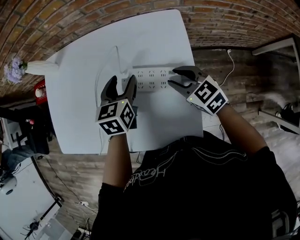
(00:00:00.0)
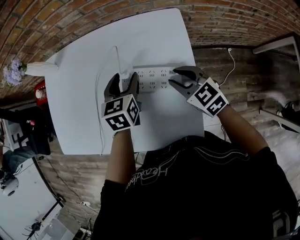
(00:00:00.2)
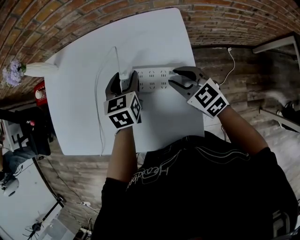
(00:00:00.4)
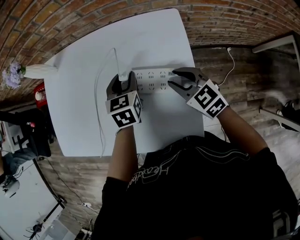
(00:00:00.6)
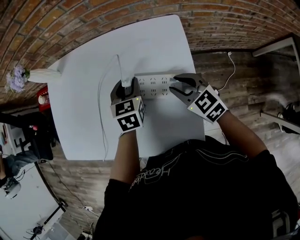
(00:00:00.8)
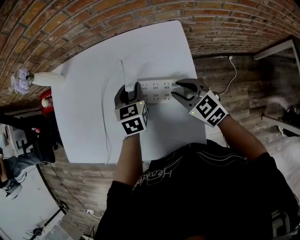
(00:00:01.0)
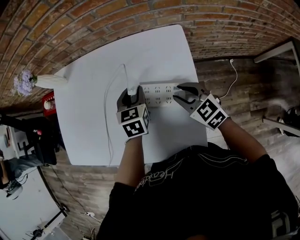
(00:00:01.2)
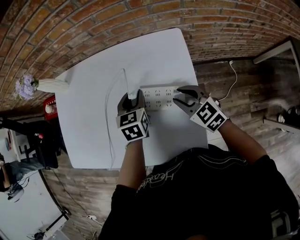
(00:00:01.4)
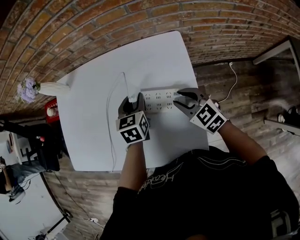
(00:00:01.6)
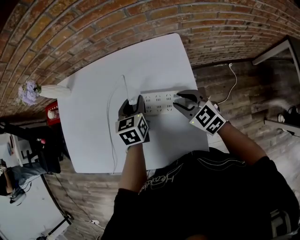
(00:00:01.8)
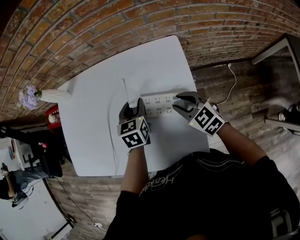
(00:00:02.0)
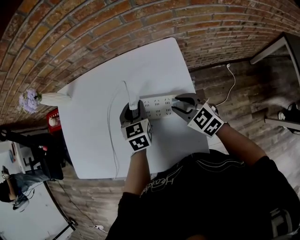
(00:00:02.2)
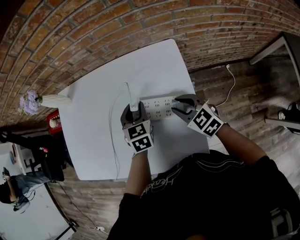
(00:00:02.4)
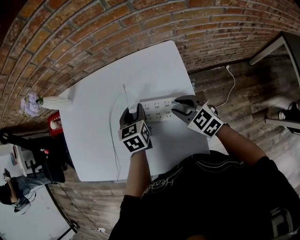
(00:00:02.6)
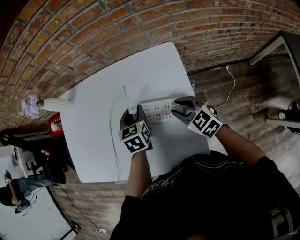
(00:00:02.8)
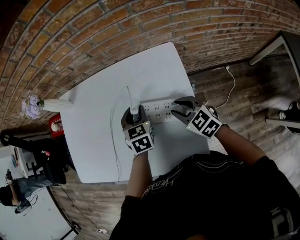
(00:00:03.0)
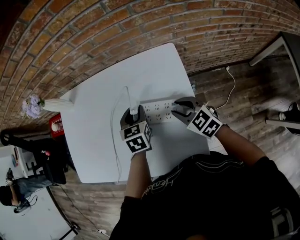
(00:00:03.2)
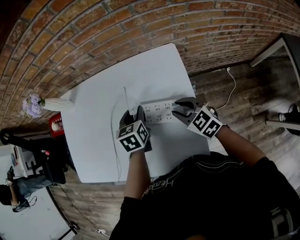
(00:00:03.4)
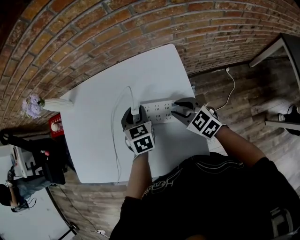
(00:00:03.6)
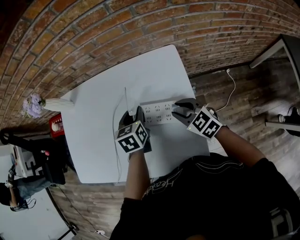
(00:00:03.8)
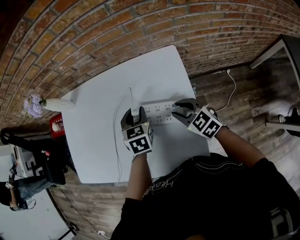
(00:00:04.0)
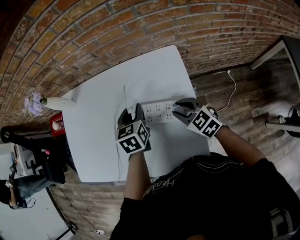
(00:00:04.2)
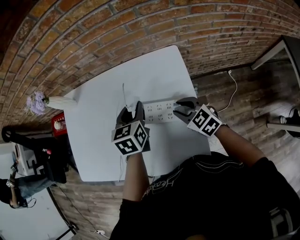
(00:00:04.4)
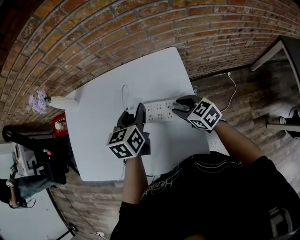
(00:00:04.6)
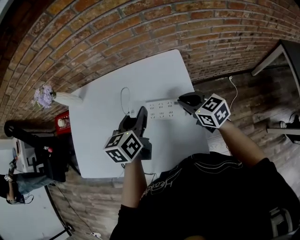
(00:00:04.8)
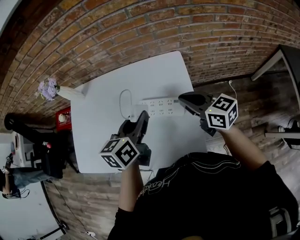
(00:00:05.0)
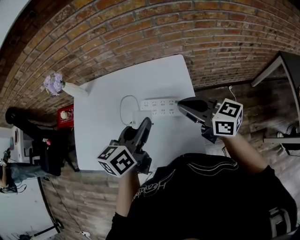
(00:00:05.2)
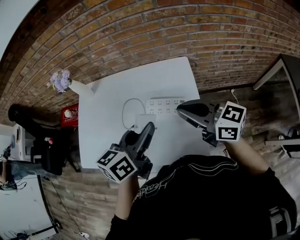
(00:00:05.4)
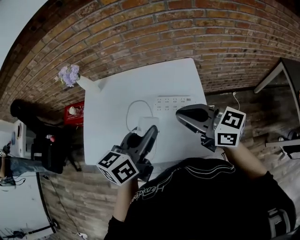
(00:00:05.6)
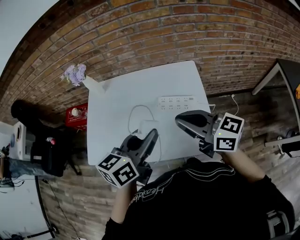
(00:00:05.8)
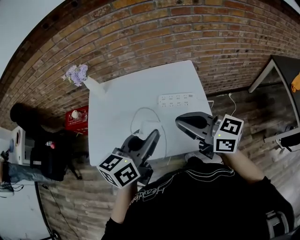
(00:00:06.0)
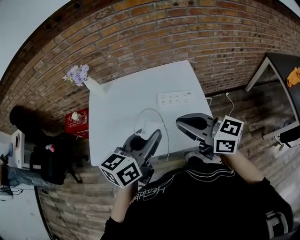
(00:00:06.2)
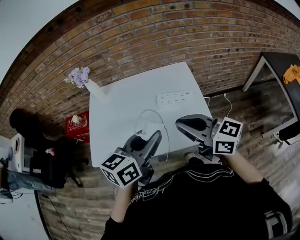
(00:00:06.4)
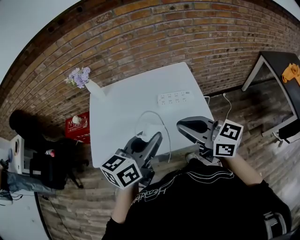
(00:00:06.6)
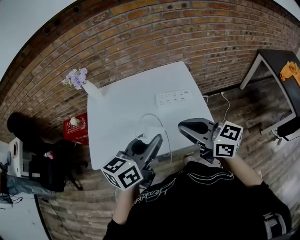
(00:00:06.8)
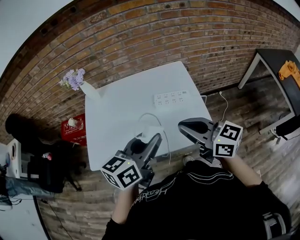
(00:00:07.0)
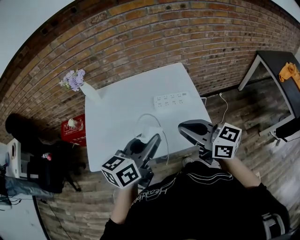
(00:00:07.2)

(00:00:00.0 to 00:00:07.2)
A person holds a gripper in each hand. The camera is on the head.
00:00:00.0 - 00:00:01.4: The left gripper closes its fingers.
00:00:01.4 - 00:00:02.8: The grippers make only small movements.
00:00:02.8 - 00:00:04.4: The left gripper moves upward, approximately 5 cm.
00:00:04.4 - 00:00:05.8: The left gripper goes some 30 cm backward, upward and to the left, and swivels approximately 30 degrees. The right gripper is displaced upward, backward and to the left by approximately 35 cm, tips its fingers upward by about 40 degrees, and closes up.
00:00:05.8 - 00:00:07.2: The two grippers go some 10 cm backward.

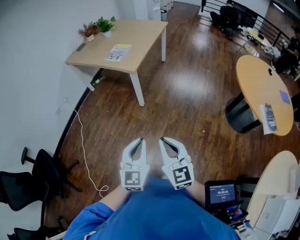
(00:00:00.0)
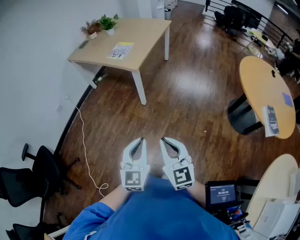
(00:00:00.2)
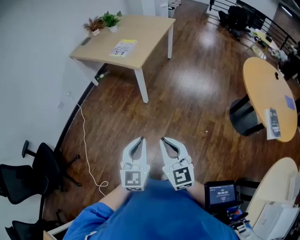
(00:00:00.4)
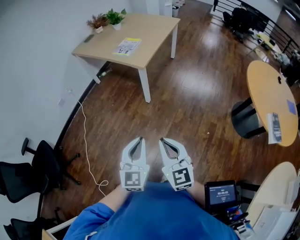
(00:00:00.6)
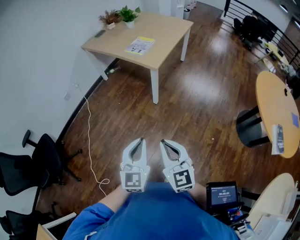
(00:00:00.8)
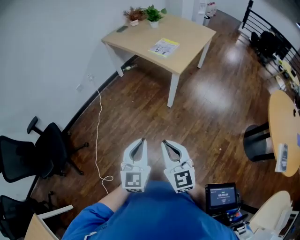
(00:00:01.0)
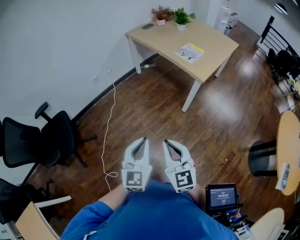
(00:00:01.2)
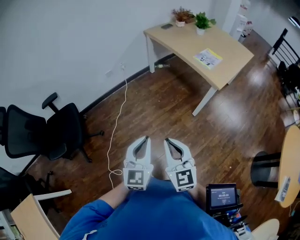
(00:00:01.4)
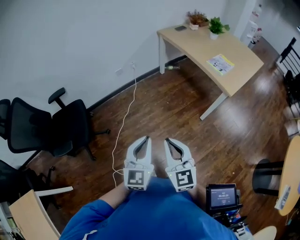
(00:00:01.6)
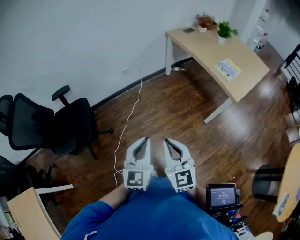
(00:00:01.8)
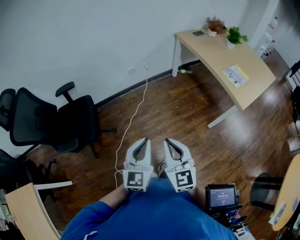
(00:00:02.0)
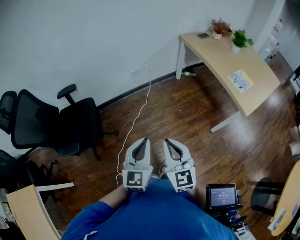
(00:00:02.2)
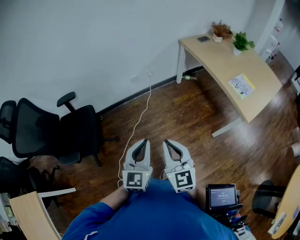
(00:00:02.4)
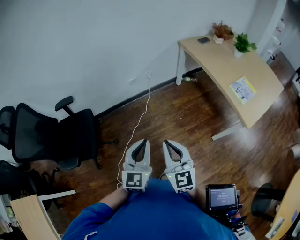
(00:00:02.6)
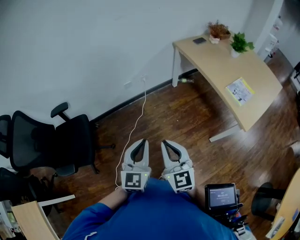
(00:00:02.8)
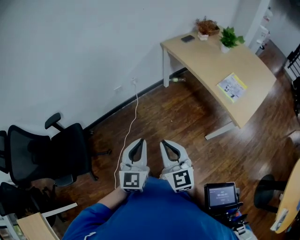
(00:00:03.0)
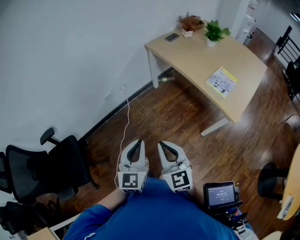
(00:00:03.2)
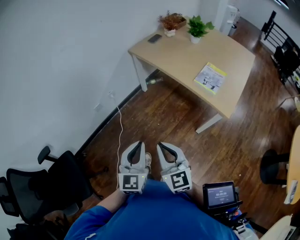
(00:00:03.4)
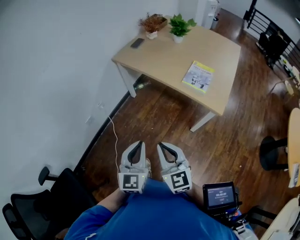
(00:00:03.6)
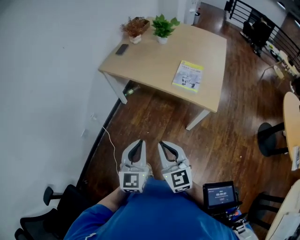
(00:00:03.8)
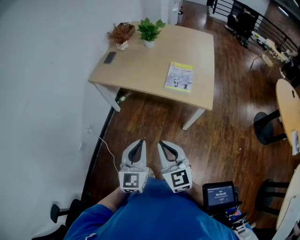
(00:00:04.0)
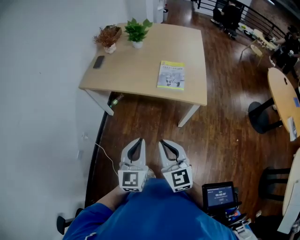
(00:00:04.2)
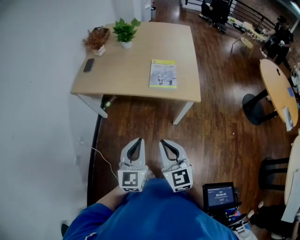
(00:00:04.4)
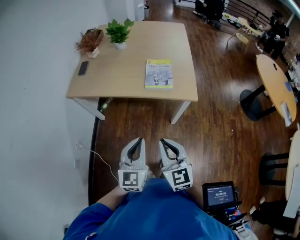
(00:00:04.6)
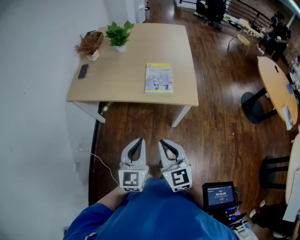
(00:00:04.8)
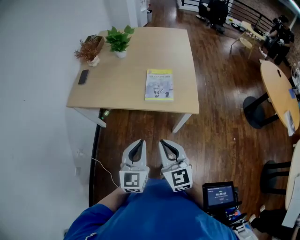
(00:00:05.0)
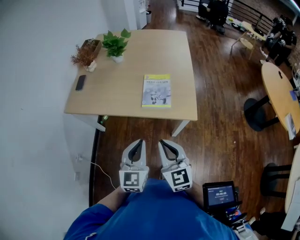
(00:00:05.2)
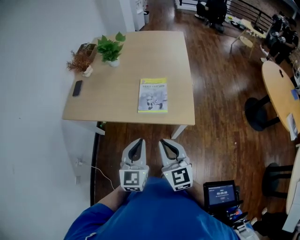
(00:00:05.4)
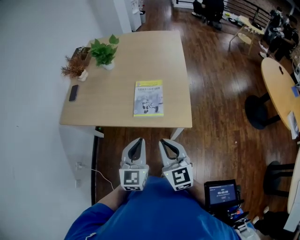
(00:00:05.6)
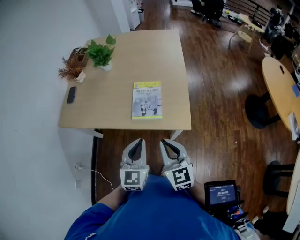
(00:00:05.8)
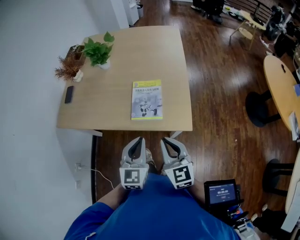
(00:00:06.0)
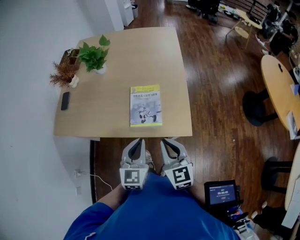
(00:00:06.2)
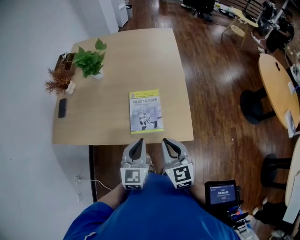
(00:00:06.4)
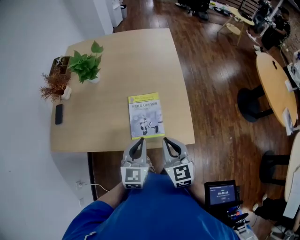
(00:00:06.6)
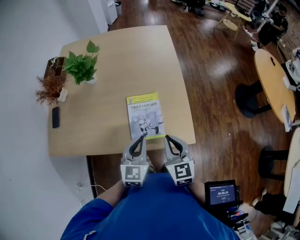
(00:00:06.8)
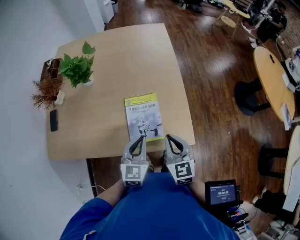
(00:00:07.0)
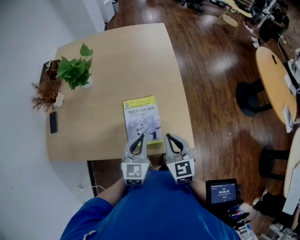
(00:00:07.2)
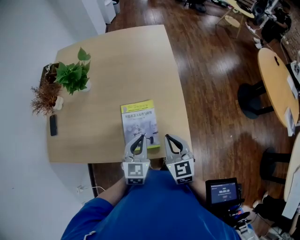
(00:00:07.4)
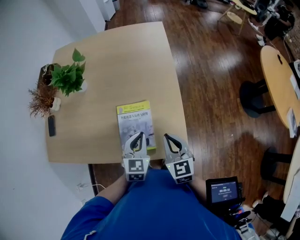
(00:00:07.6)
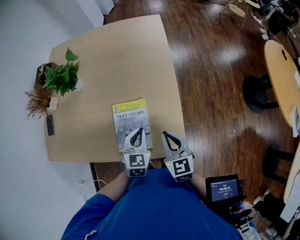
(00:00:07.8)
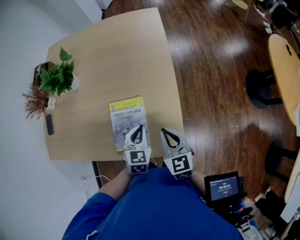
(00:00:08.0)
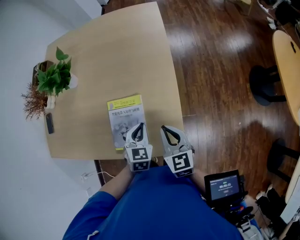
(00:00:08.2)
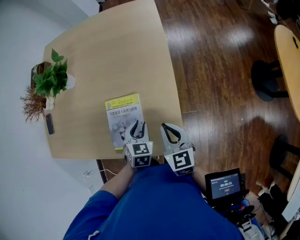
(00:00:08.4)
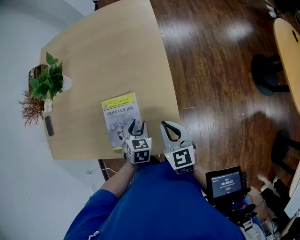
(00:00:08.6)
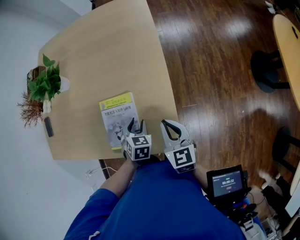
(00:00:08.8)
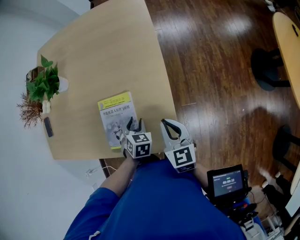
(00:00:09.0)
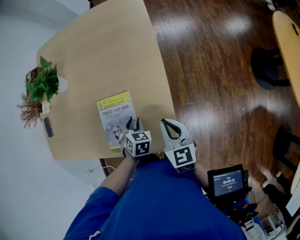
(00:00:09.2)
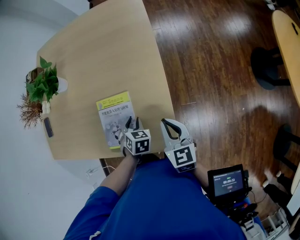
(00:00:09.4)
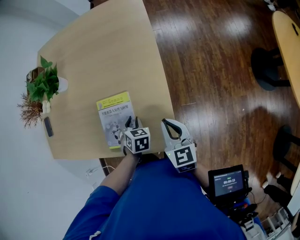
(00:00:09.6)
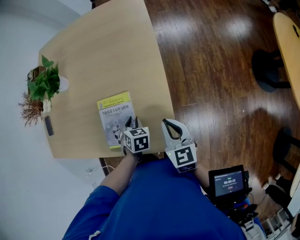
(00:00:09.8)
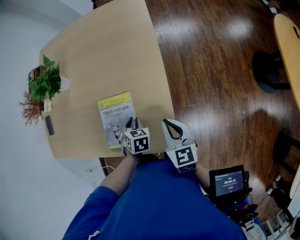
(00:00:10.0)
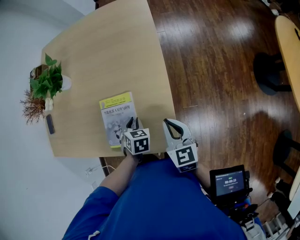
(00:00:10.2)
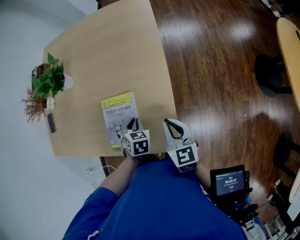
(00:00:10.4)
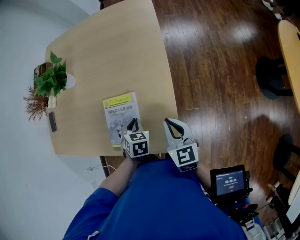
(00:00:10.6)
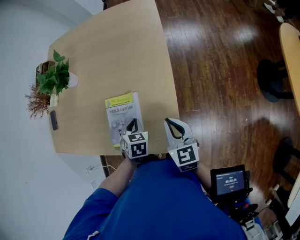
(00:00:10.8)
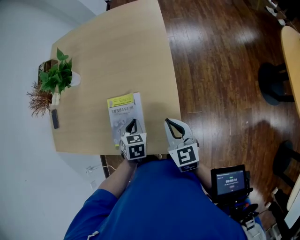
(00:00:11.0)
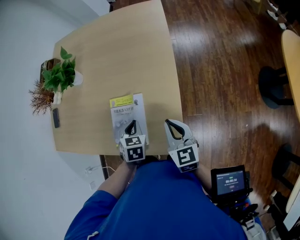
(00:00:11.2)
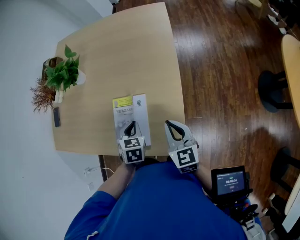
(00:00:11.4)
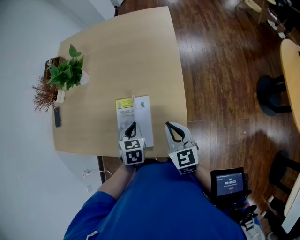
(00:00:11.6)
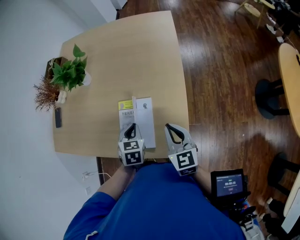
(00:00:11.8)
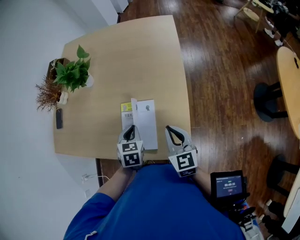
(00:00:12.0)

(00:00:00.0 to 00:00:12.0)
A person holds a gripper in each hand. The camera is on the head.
00:00:00.0 - 00:00:01.6: The two grippers travel together, roughly 50 cm. The left gripper changes its angle by some 30 degrees. The right gripper turns by about 30 degrees.
00:00:01.6 - 00:00:03.0: Both grippers move forward, about 25 cm.
00:00:03.0 - 00:00:04.4: The left gripper ends up roughly 30 cm from where it was, and turns by about 50 degrees. The right gripper ends up some 20 cm from where it was, and rotates about 50 degrees.
00:00:04.4 - 00:00:06.0: The grippers both shift forward and to the right by some 30 cm.
00:00:06.0 - 00:00:07.6: The left gripper goes roughly 25 cm forward and downward; the right gripper shifts about 20 cm forward.
00:00:07.6 - 00:00:09.0: The left gripper goes approximately 15 cm downward and to the right, changes its angle by about 30 degrees, and opens up; the right gripper shifts some 10 cm to the right and downward.
00:00:09.0 - 00:00:10.4: The left gripper closes.
00:00:10.4 - 00:00:12.0: The two grippers go roughly 10 cm to the left and upward.

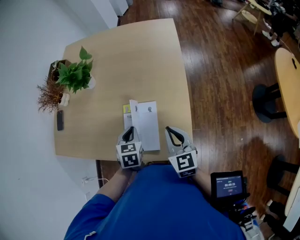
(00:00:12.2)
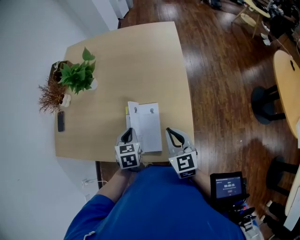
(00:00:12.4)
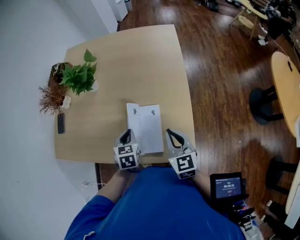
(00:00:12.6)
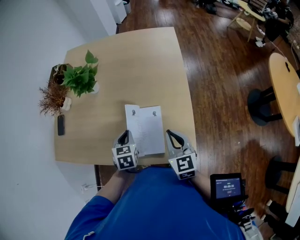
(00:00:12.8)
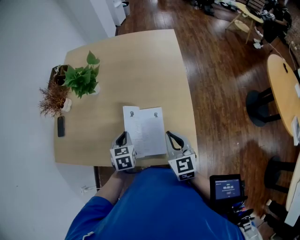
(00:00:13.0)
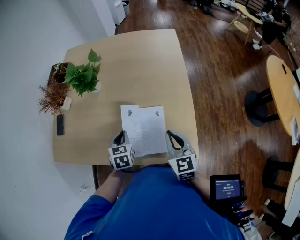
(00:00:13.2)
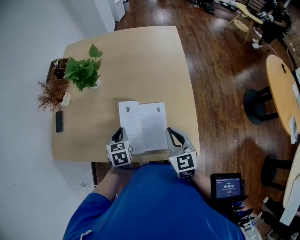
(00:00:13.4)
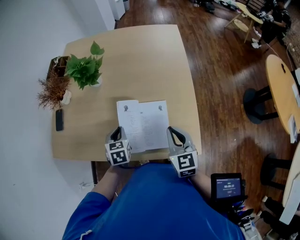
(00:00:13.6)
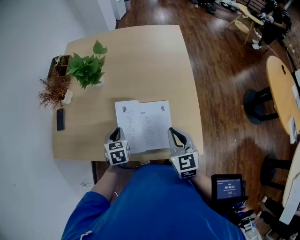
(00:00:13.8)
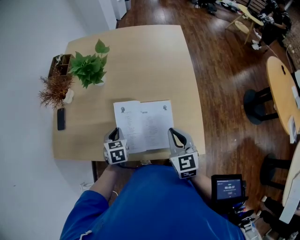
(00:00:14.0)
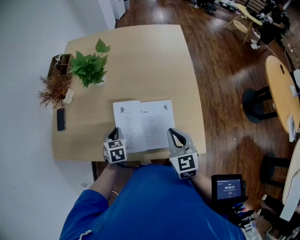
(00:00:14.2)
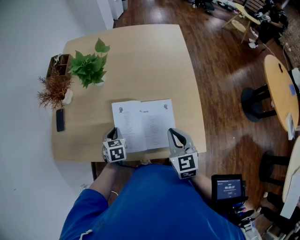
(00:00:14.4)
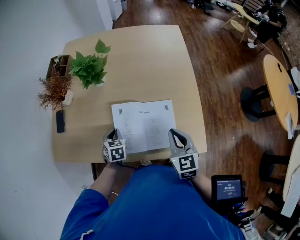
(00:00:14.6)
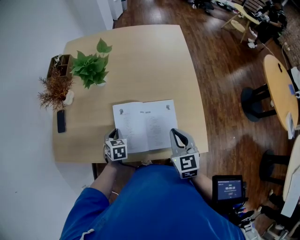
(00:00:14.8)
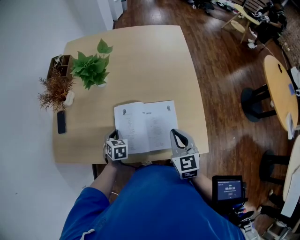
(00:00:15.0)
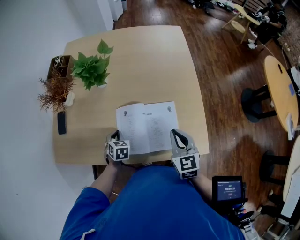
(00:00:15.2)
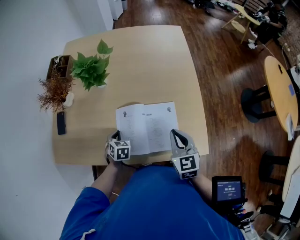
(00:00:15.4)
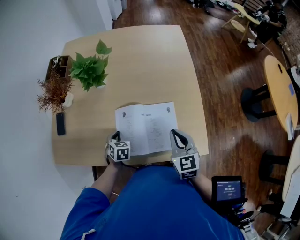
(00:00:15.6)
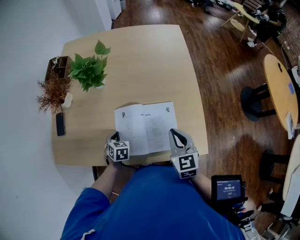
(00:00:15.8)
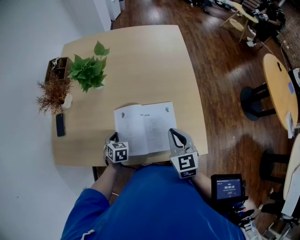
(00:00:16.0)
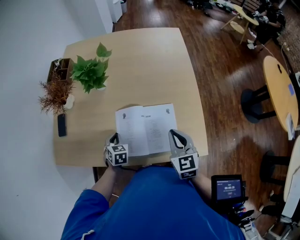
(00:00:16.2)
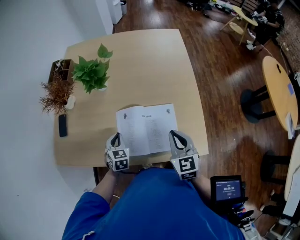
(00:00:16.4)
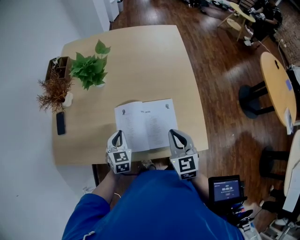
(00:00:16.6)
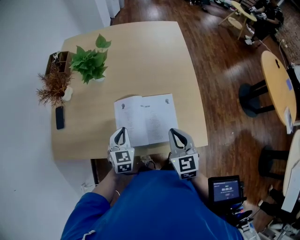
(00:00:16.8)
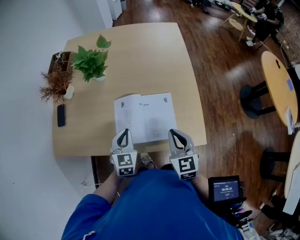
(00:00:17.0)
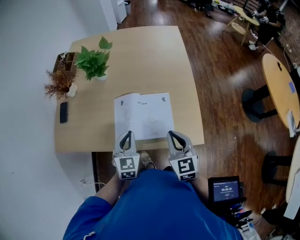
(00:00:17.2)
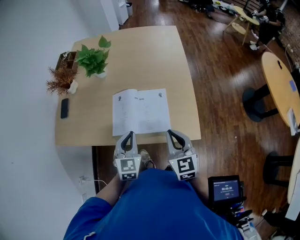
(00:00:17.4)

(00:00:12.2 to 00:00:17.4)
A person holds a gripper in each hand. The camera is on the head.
00:00:12.2 - 00:00:14.0: The left gripper shifts roughly 20 cm to the left, while the right gripper goes about 10 cm to the left.
00:00:14.0 - 00:00:15.6: The left gripper travels downward by approximately 5 cm.
00:00:15.6 - 00:00:17.4: The right gripper heads backward, covering some 15 cm, while the left gripper travels upward, backward and to the right by roughly 25 cm, and tips its fingers upward by some 30 degrees.
